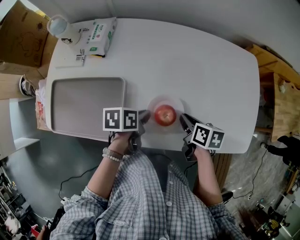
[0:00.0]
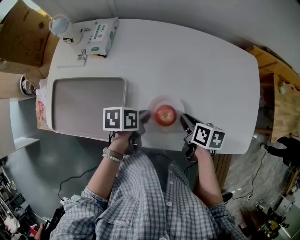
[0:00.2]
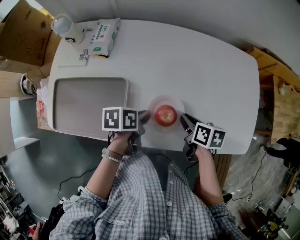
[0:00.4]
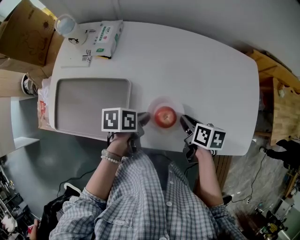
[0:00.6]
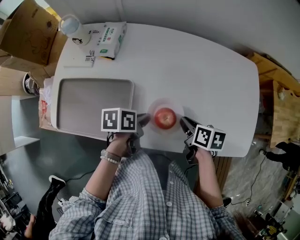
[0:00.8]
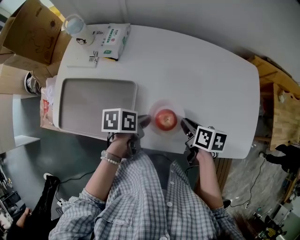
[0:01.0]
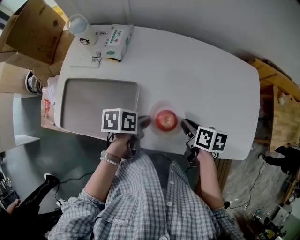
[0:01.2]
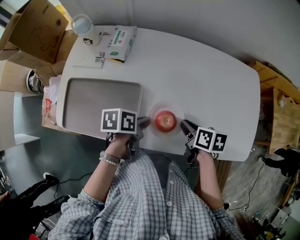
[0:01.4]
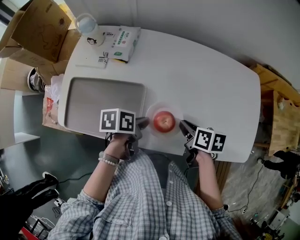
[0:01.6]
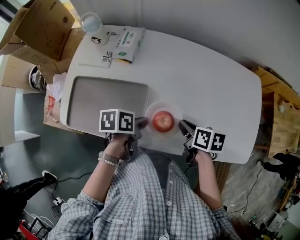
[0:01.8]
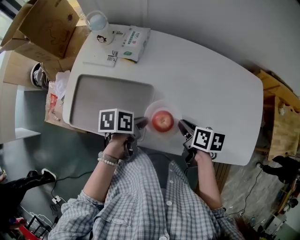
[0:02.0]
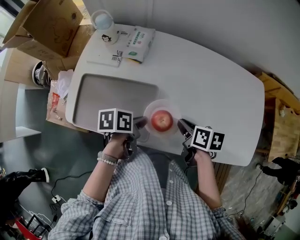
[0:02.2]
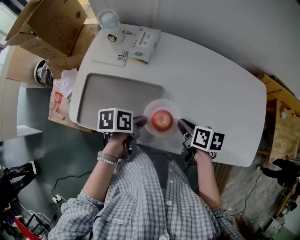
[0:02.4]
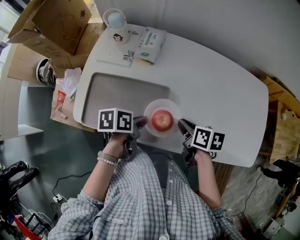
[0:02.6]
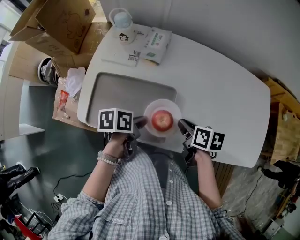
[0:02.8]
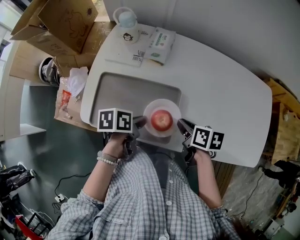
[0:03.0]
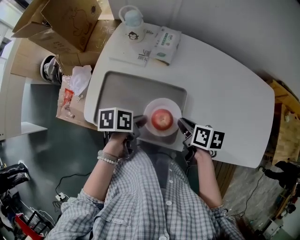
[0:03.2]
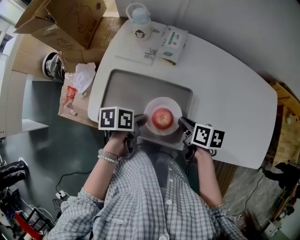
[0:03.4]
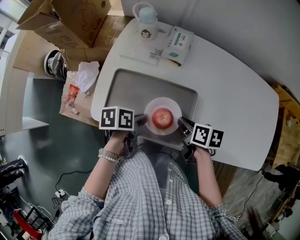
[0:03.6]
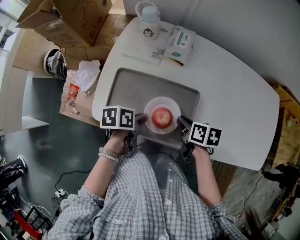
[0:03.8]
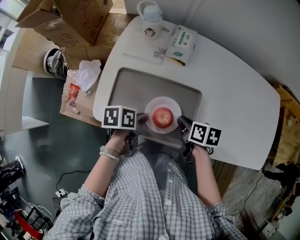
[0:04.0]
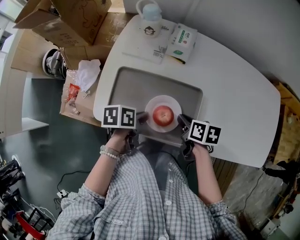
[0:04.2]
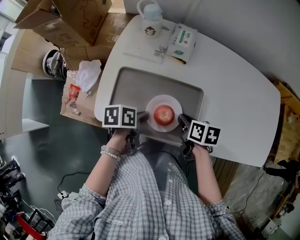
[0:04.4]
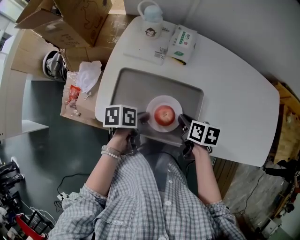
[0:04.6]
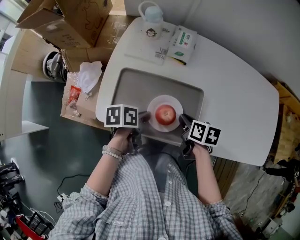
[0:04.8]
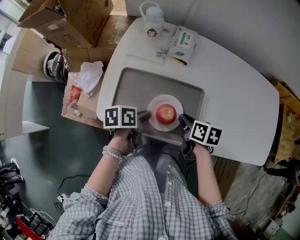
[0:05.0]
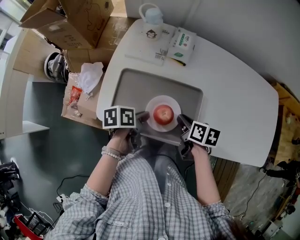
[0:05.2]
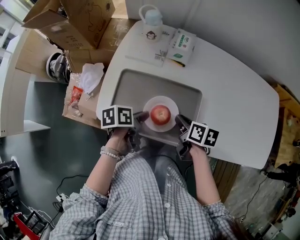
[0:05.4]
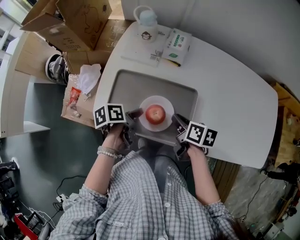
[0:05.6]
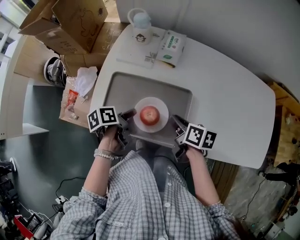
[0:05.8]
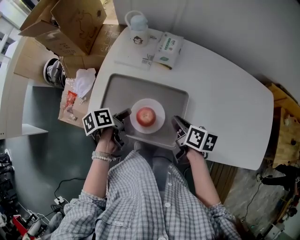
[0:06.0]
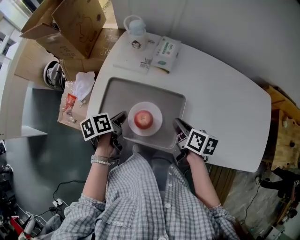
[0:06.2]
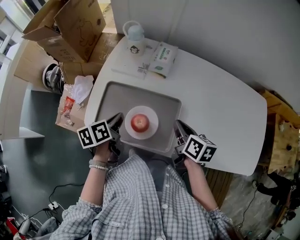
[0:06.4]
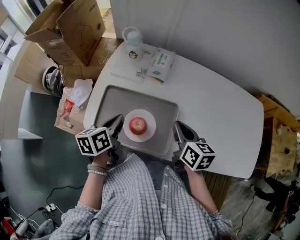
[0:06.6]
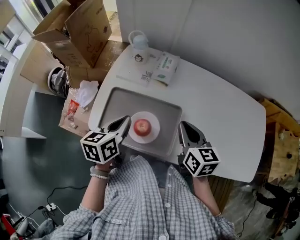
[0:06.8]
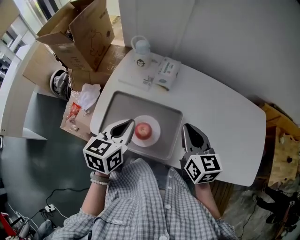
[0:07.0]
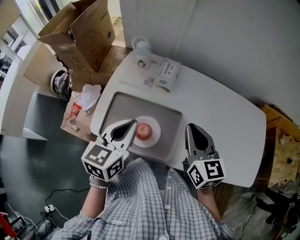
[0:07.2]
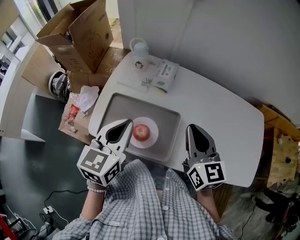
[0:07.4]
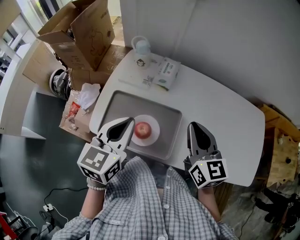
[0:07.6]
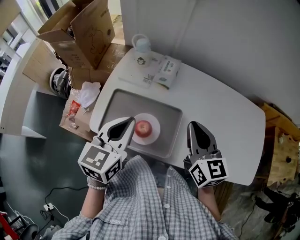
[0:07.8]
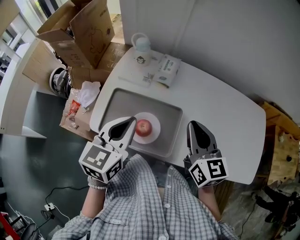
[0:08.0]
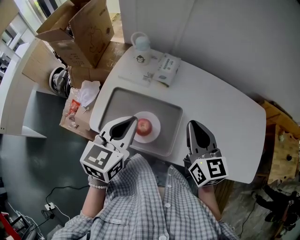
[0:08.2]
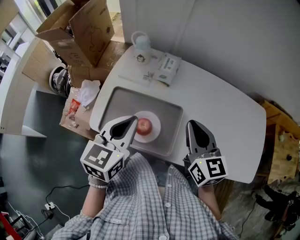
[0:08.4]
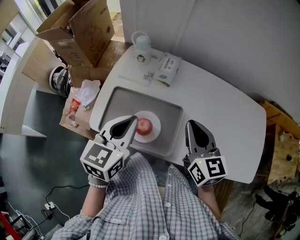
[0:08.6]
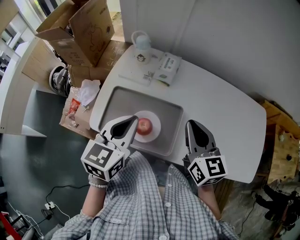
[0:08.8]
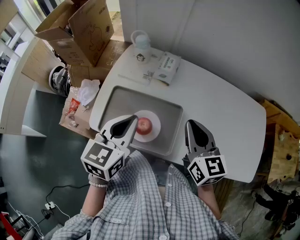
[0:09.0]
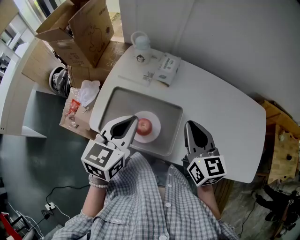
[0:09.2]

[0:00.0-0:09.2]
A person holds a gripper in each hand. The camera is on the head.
0:00.0 to 0:01.6: The grippers both shift to the left by about 5 cm.
0:01.6 to 0:03.0: The two grippers go about 15 cm to the left.
0:03.0 to 0:04.6: Both grippers travel together to the left, about 10 cm.
0:04.6 to 0:06.2: The right gripper shifts some 5 cm upward, while the left gripper changes place by about 5 cm, and swivels approximately 20 degrees.
0:06.2 to 0:07.6: The grippers both shift upward by some 20 cm. The left gripper rotates around the line of its fingers by approximately 50 degrees, clockwise from behind, while the right gripper rolls counterclockwise, seen from behind, by some 40 degrees.
0:07.6 to 0:09.2: The grippers make only small movements.

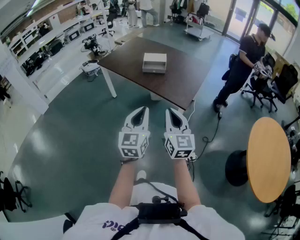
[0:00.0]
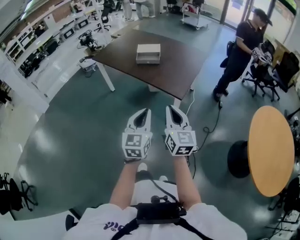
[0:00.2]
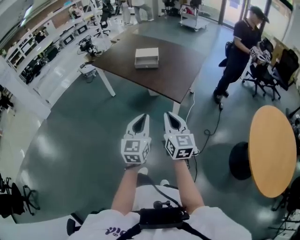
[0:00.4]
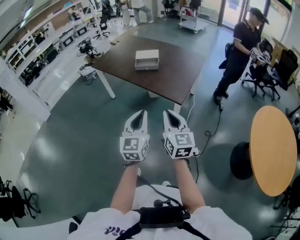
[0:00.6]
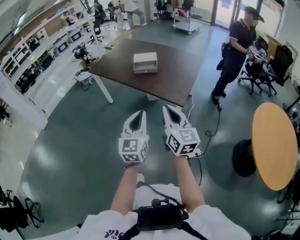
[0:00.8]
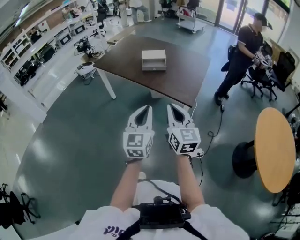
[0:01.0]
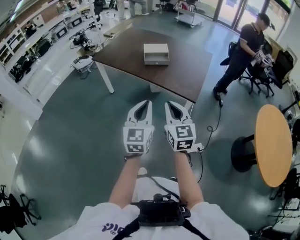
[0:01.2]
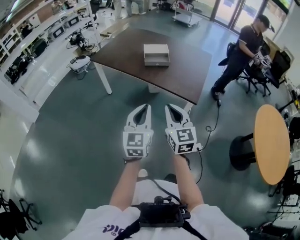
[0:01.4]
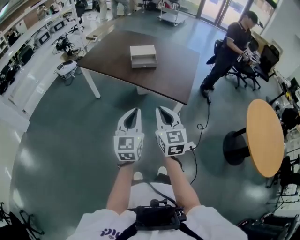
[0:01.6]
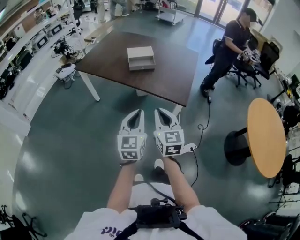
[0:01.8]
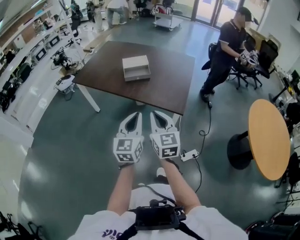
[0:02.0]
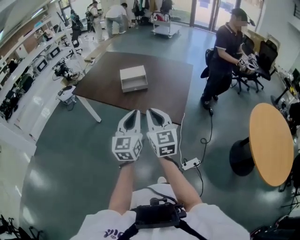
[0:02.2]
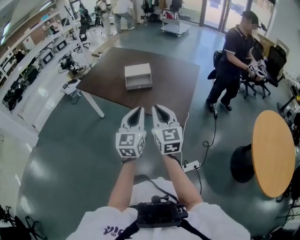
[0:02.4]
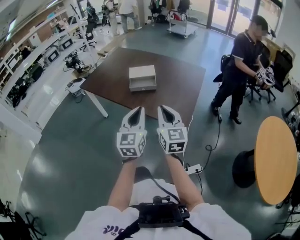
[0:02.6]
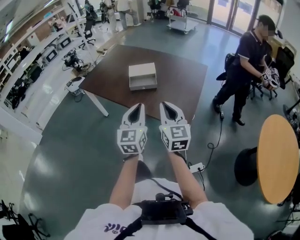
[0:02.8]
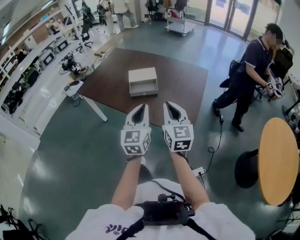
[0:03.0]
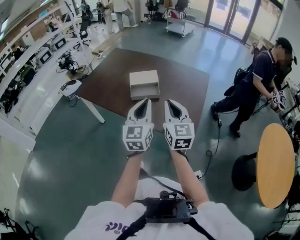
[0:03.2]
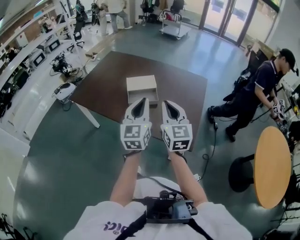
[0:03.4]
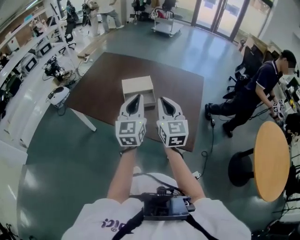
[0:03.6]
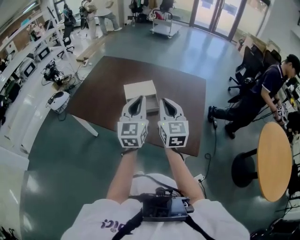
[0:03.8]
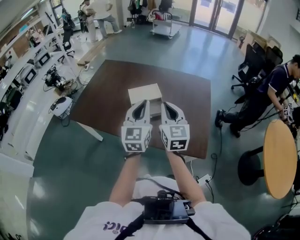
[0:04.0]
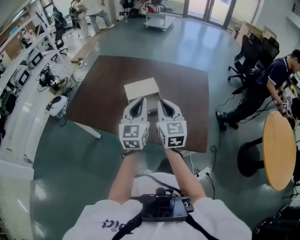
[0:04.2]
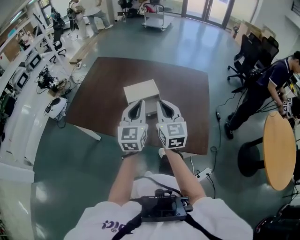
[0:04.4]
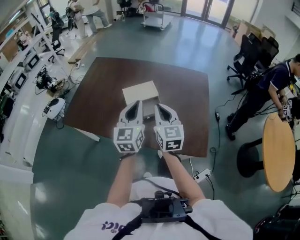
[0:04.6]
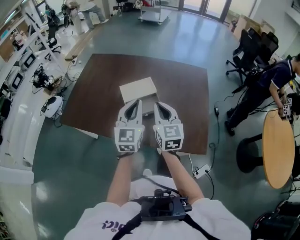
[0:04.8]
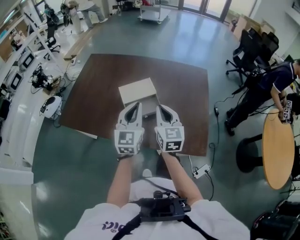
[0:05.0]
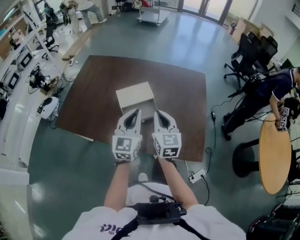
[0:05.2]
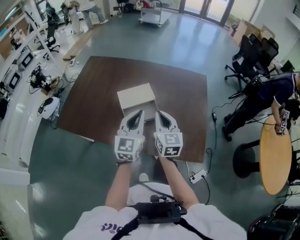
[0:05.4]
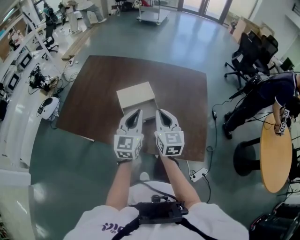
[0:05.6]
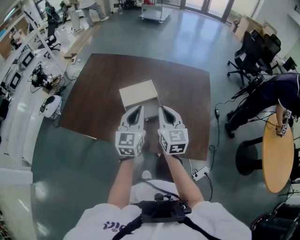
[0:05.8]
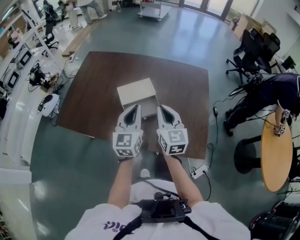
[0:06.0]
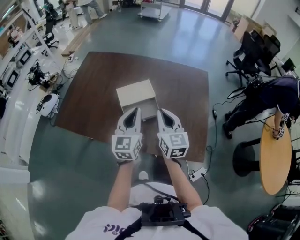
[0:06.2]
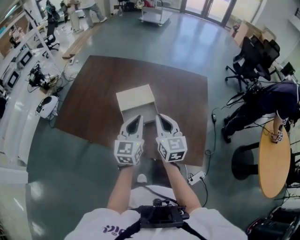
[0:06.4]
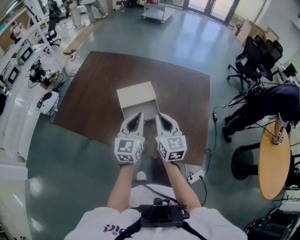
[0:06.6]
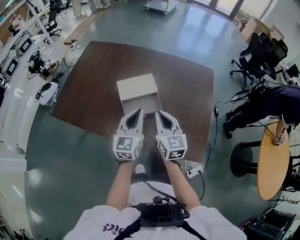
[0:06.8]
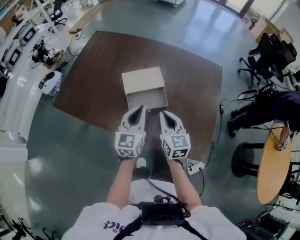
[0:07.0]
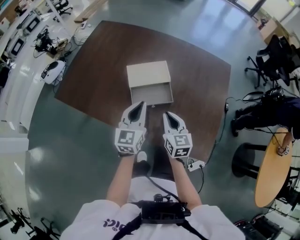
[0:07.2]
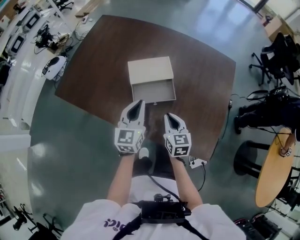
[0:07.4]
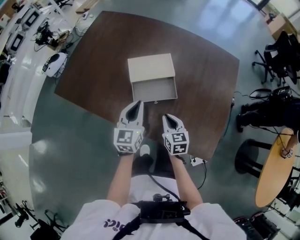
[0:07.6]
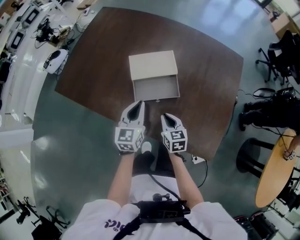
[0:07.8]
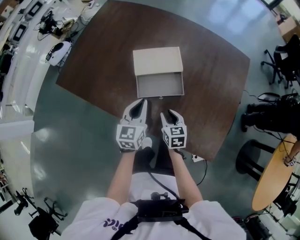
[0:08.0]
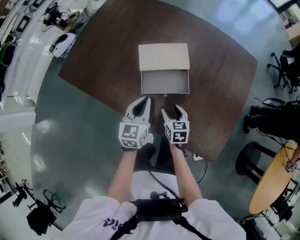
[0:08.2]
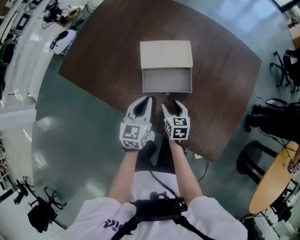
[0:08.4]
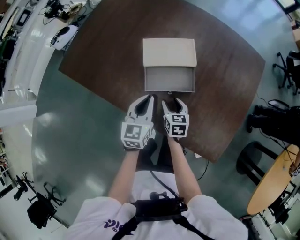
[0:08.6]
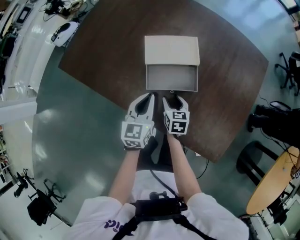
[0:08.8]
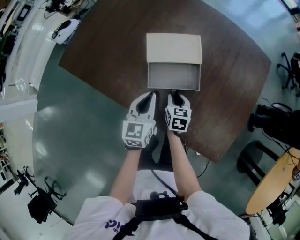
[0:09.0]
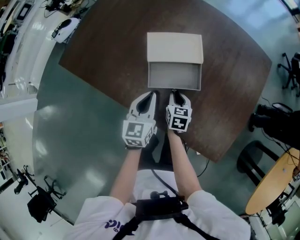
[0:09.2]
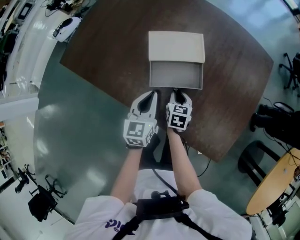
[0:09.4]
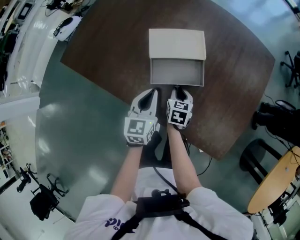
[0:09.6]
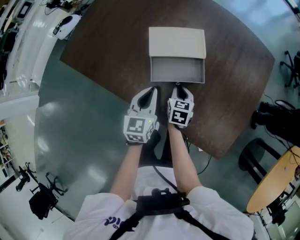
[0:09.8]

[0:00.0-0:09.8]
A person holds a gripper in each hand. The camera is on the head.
0:00.0 to 0:01.4: Both grippers move to the left and forward, roughly 15 cm.
0:01.4 to 0:02.8: The two grippers go approximately 25 cm forward and to the right.
0:02.8 to 0:04.2: The right gripper travels forward and to the left by roughly 30 cm; the left gripper shifts approximately 30 cm forward.
0:04.2 to 0:05.6: Both grippers move forward and downward, approximately 10 cm.
0:05.6 to 0:07.0: Both grippers travel together downward, roughly 10 cm.
0:07.0 to 0:08.4: The left gripper heads downward, covering roughly 15 cm, while the right gripper moves downward, some 25 cm, rotates approximately 30 degrees, and opens.
0:08.4 to 0:09.8: The right gripper closes its fingers.

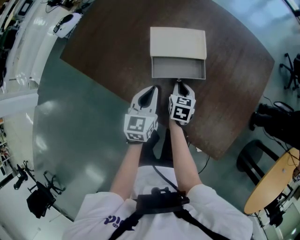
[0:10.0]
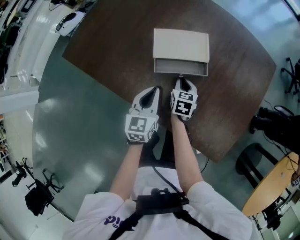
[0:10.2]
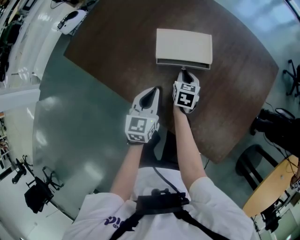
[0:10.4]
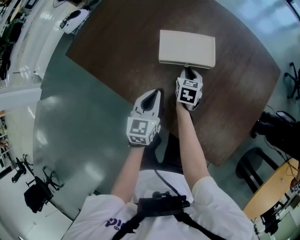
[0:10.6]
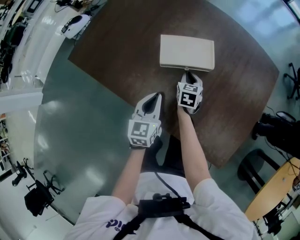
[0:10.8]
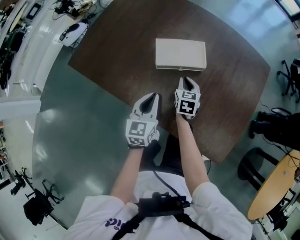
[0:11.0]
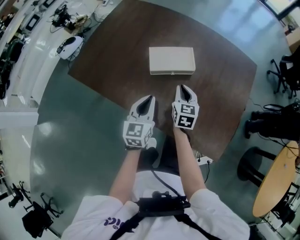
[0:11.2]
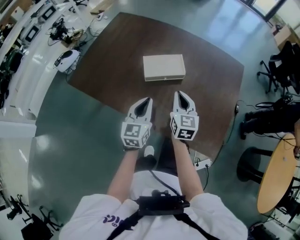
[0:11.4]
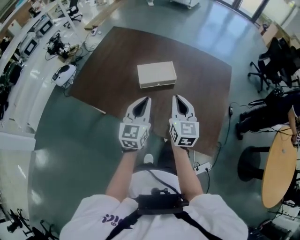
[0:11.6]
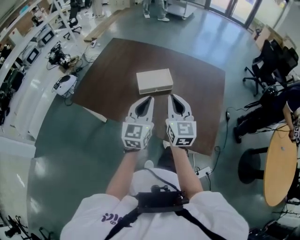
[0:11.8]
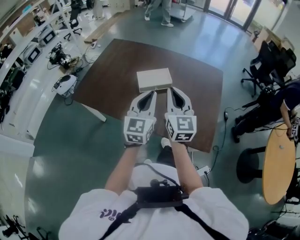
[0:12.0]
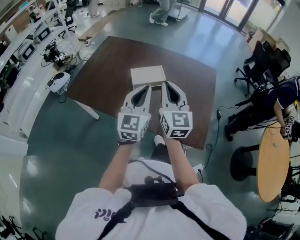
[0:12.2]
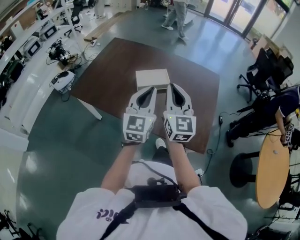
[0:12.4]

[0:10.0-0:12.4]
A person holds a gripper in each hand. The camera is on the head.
0:10.0 to 0:11.2: The left gripper is displaced upward by roughly 10 cm. Meanwhile the right gripper is displaced upward by roughly 15 cm.
0:11.2 to 0:12.4: The right gripper is displaced upward and backward by roughly 35 cm, and angles its fingers upward, by approximately 40 degrees. The left gripper travels upward, backward and to the right by approximately 25 cm, and turns by approximately 30 degrees.

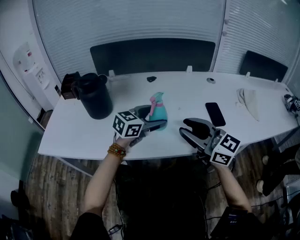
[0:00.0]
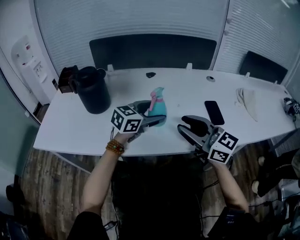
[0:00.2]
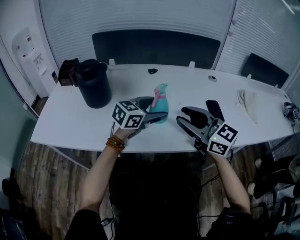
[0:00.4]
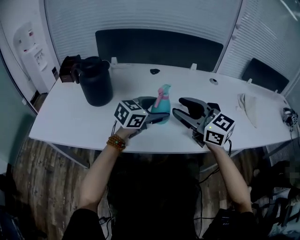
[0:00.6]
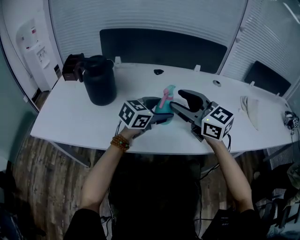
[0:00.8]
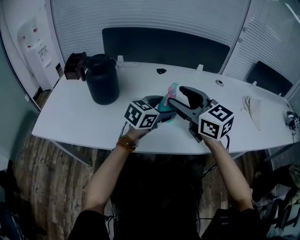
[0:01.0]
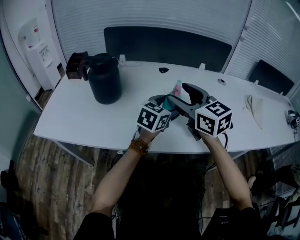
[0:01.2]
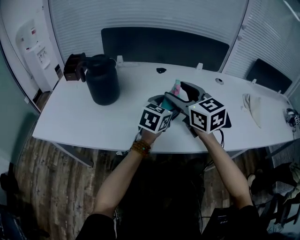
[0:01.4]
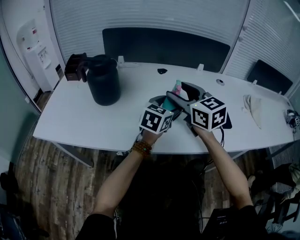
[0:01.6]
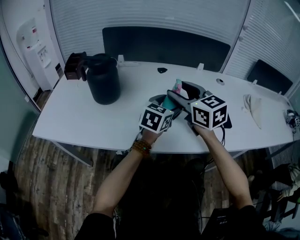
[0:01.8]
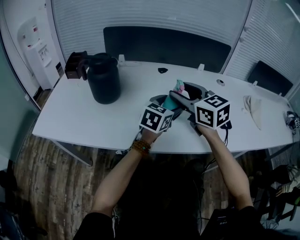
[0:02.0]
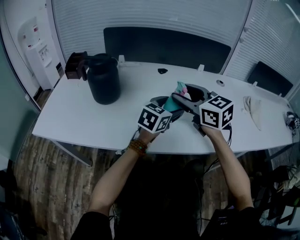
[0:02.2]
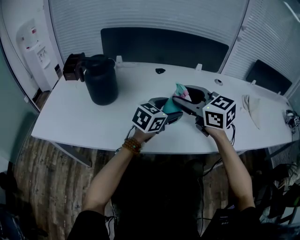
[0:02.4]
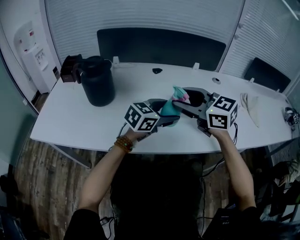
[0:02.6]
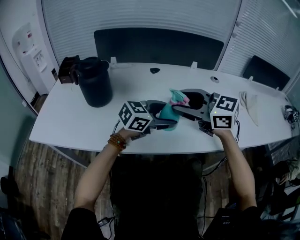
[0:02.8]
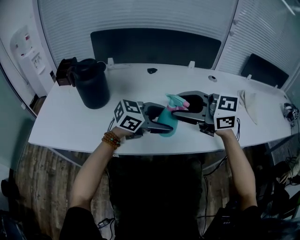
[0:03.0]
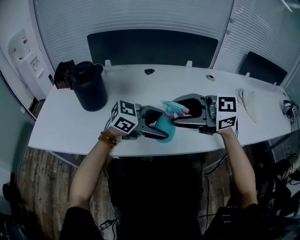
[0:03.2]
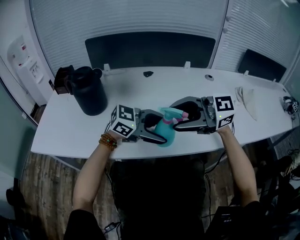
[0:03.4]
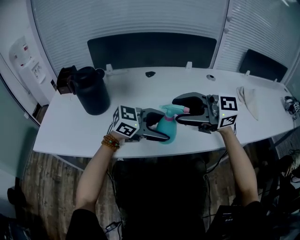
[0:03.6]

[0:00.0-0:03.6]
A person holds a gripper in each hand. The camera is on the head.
0:00.0 to 0:01.8: The right gripper goes about 15 cm forward and to the left, swivels some 20 degrees, and opens its fingers; the left gripper swivels roughly 20 degrees.
0:01.8 to 0:03.6: The left gripper ends up roughly 15 cm from where it was, and rotates roughly 60 degrees, while the right gripper ends up some 10 cm from where it was, and swivels approximately 50 degrees.
